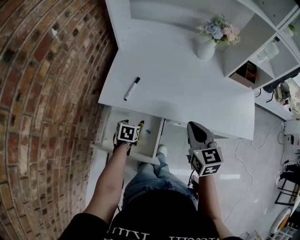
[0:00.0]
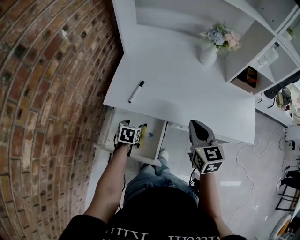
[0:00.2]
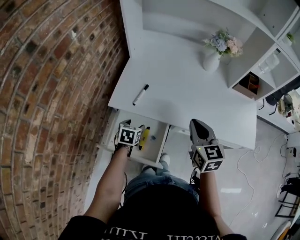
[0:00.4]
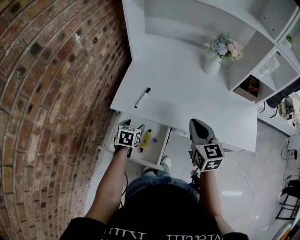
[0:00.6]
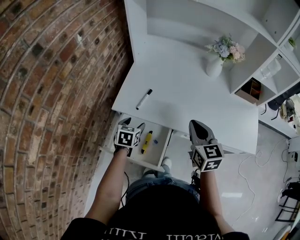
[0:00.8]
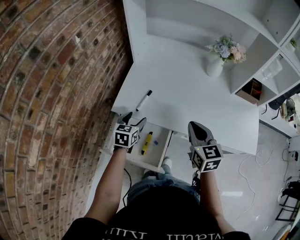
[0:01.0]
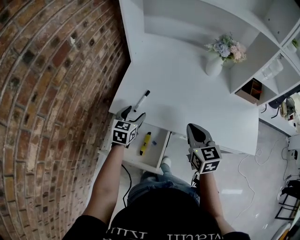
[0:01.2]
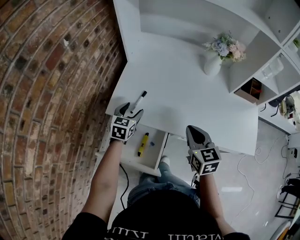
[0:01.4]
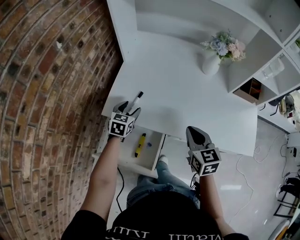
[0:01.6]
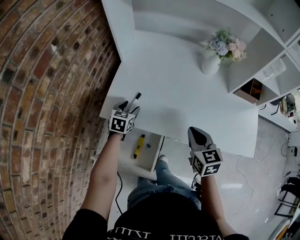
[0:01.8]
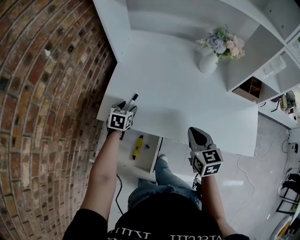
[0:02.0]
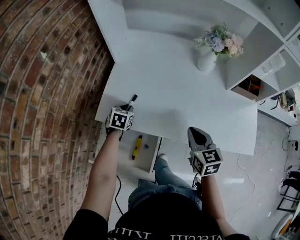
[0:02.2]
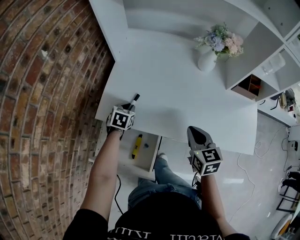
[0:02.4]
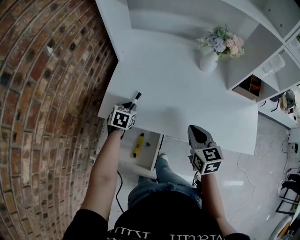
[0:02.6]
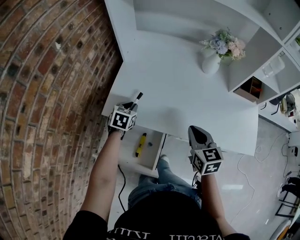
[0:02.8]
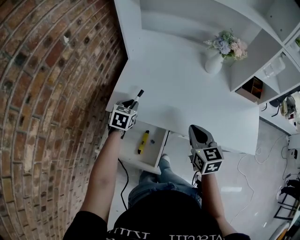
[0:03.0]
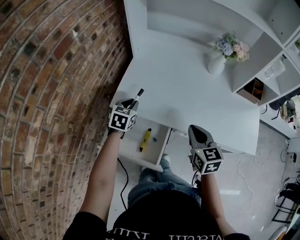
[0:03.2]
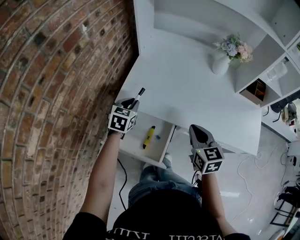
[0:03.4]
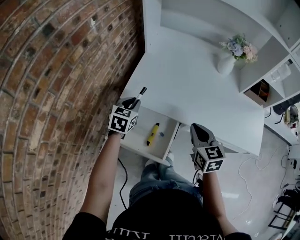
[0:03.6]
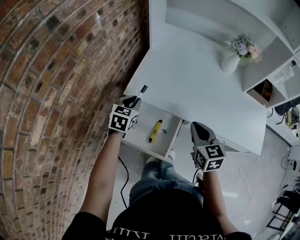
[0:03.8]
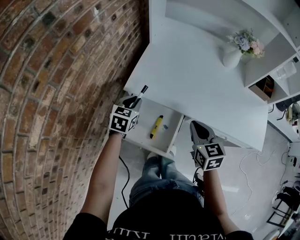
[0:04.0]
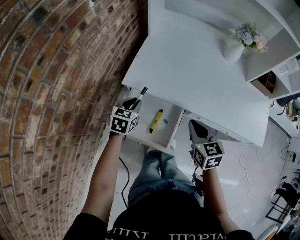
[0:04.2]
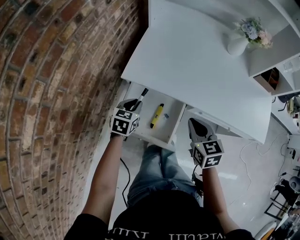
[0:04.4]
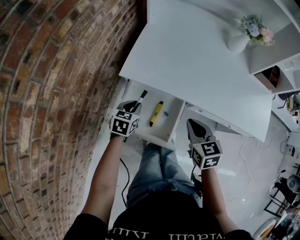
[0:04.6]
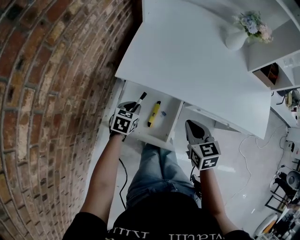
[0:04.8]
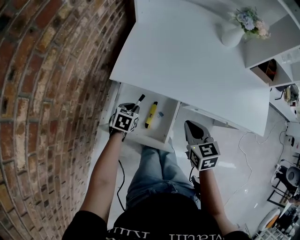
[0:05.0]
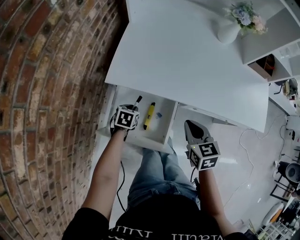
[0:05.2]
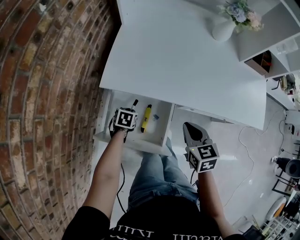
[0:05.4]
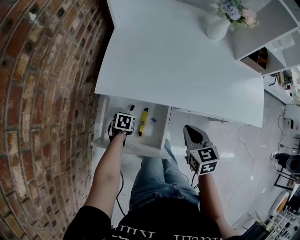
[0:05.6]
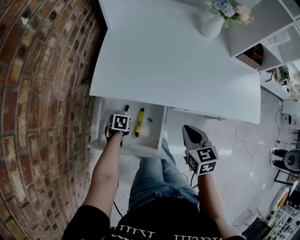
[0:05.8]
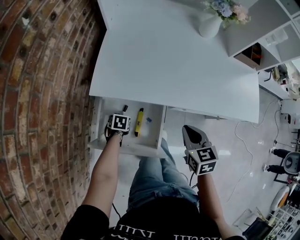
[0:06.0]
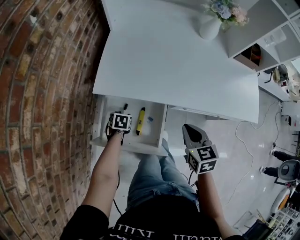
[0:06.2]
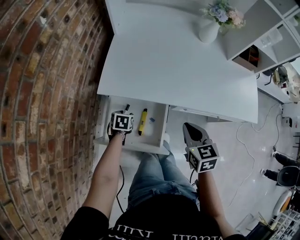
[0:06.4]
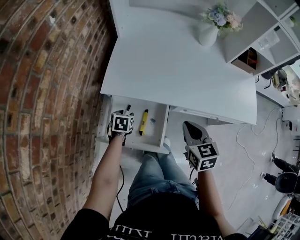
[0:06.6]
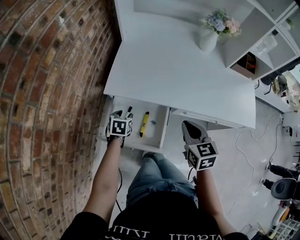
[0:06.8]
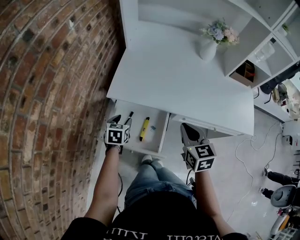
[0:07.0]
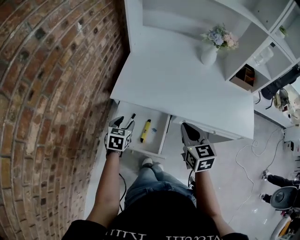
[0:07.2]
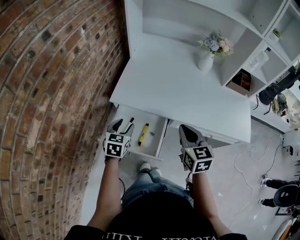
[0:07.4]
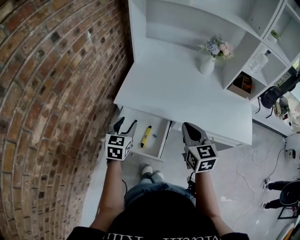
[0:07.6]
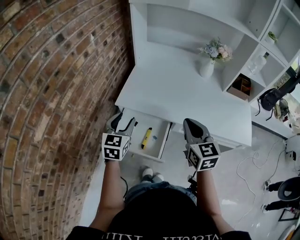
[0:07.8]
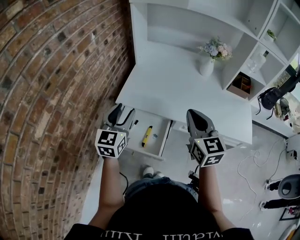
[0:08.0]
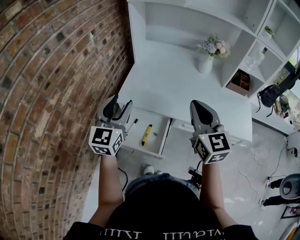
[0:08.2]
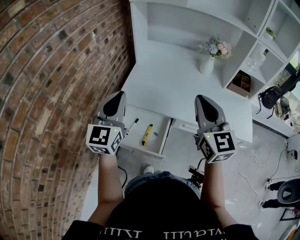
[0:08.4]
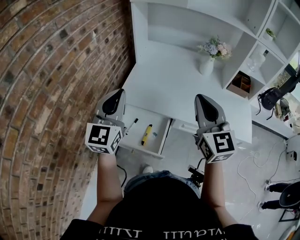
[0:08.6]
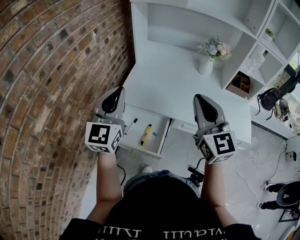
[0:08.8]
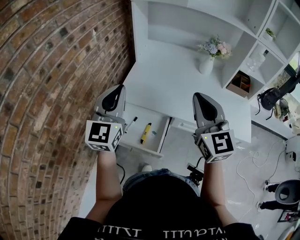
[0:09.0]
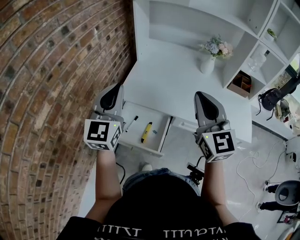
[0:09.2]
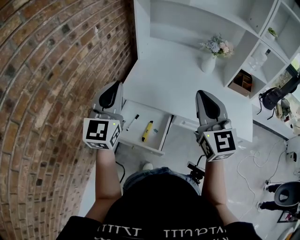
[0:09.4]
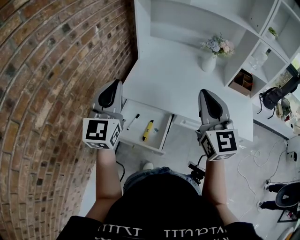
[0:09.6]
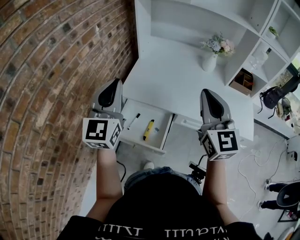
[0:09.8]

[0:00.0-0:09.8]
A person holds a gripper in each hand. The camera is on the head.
0:00.0 to 0:01.4: The right gripper ends up roughly 5 cm from where it was. Meanwhile the left gripper goes approximately 20 cm upward and forward, and rotates some 30 degrees.
0:01.4 to 0:02.8: The left gripper closes up.
0:02.8 to 0:04.2: The right gripper travels to the left and backward by roughly 15 cm. Meanwhile the left gripper shifts some 15 cm backward and to the left.
0:04.2 to 0:05.6: The left gripper goes about 25 cm downward, and angles its fingers downward, by some 30 degrees, while the right gripper shifts about 5 cm downward.
0:05.6 to 0:07.0: The right gripper goes roughly 10 cm upward; the left gripper moves upward, some 20 cm, and turns by some 30 degrees.
0:07.0 to 0:08.4: The right gripper travels upward by approximately 25 cm, and tips its fingers upward by about 30 degrees; the left gripper travels upward by approximately 35 cm, and tilts its fingers about 50 degrees upward.
0:08.4 to 0:09.8: The grippers stay close to where they were, moving slightly.

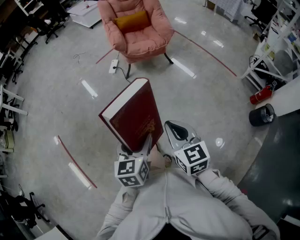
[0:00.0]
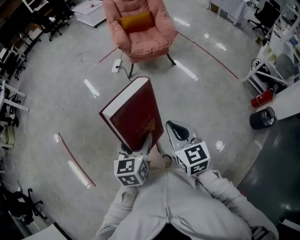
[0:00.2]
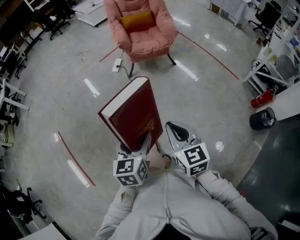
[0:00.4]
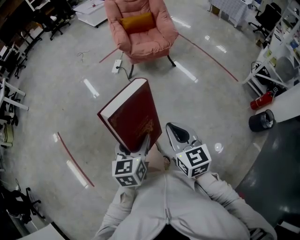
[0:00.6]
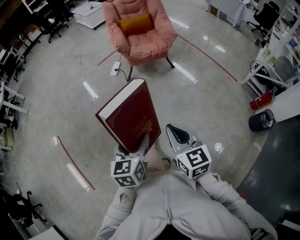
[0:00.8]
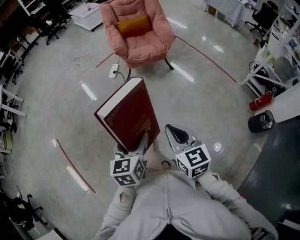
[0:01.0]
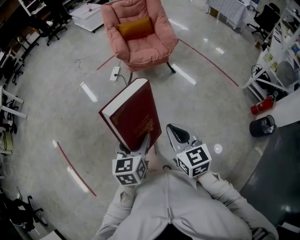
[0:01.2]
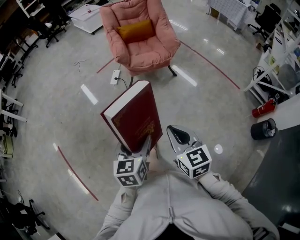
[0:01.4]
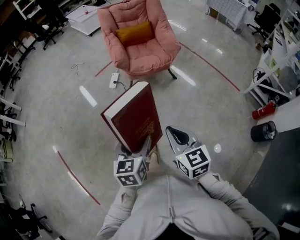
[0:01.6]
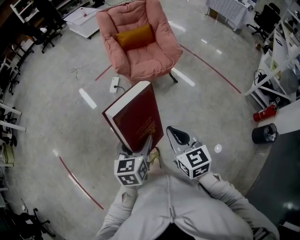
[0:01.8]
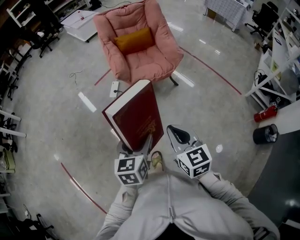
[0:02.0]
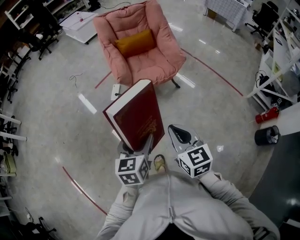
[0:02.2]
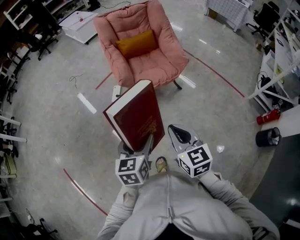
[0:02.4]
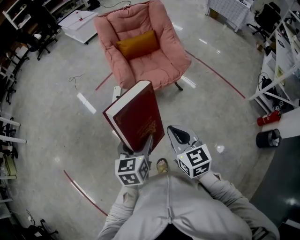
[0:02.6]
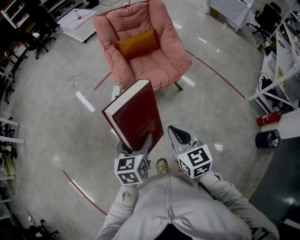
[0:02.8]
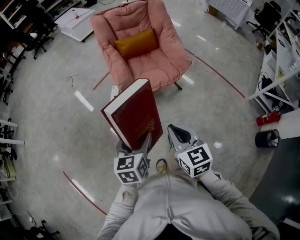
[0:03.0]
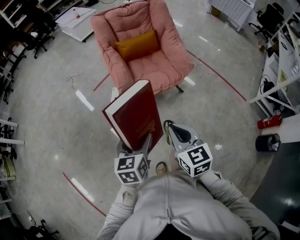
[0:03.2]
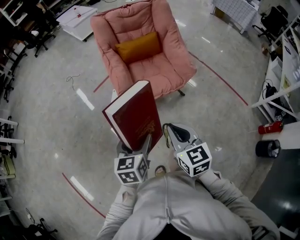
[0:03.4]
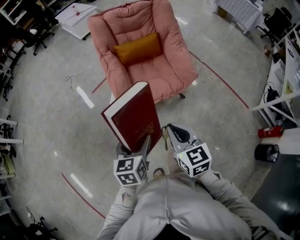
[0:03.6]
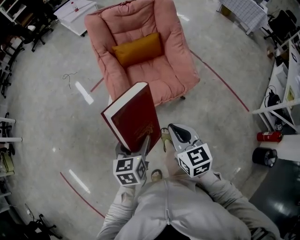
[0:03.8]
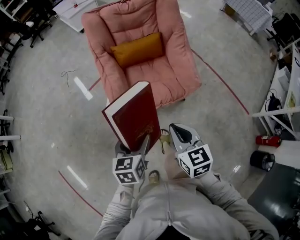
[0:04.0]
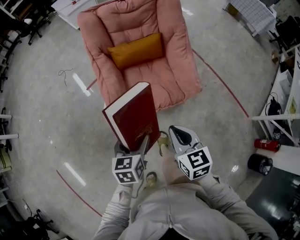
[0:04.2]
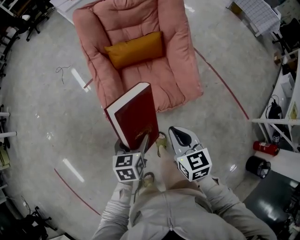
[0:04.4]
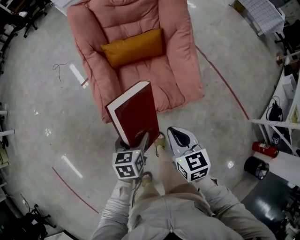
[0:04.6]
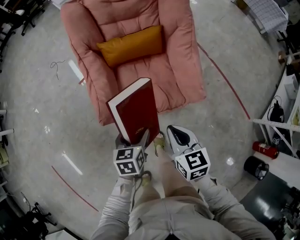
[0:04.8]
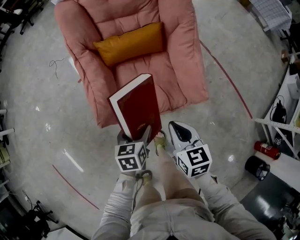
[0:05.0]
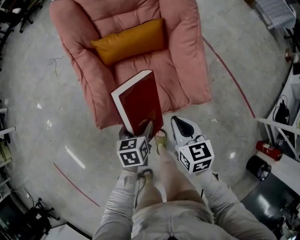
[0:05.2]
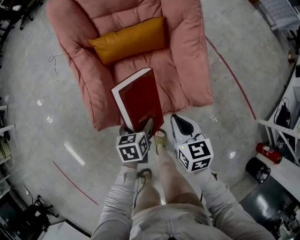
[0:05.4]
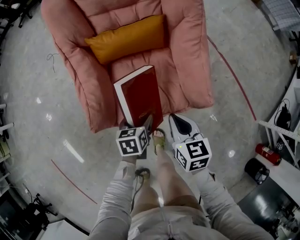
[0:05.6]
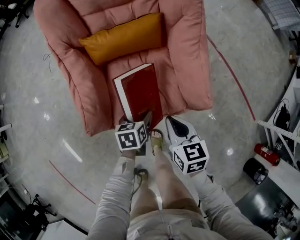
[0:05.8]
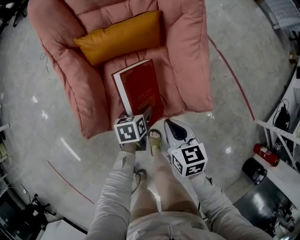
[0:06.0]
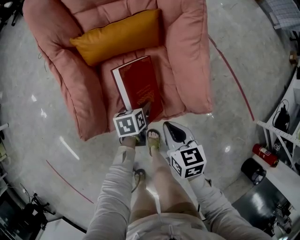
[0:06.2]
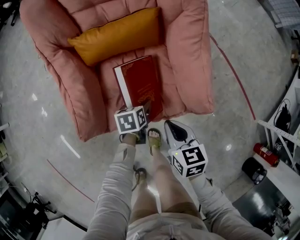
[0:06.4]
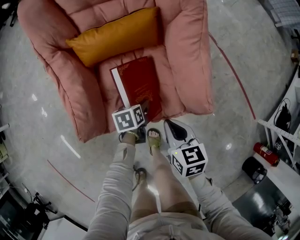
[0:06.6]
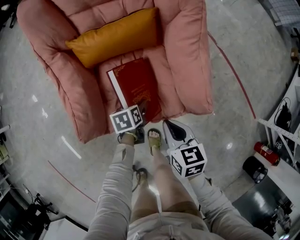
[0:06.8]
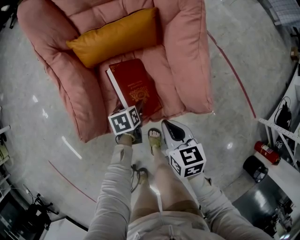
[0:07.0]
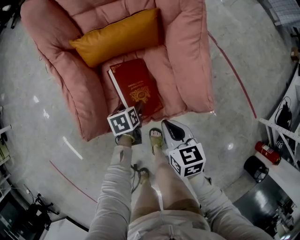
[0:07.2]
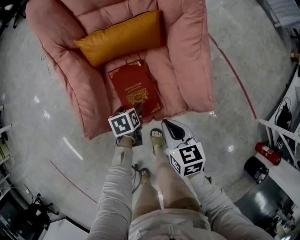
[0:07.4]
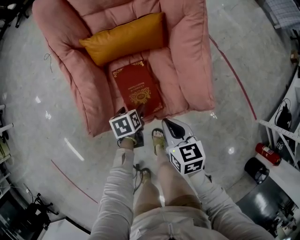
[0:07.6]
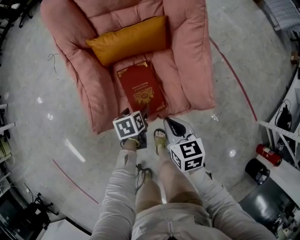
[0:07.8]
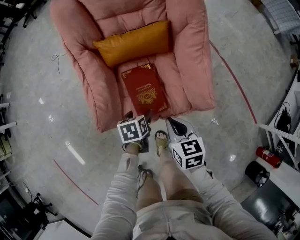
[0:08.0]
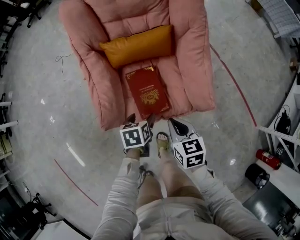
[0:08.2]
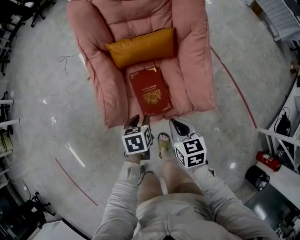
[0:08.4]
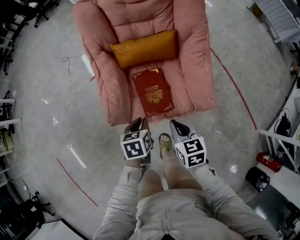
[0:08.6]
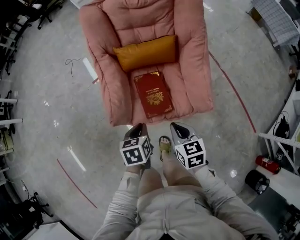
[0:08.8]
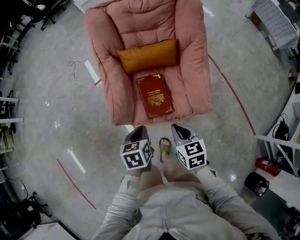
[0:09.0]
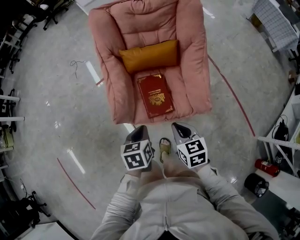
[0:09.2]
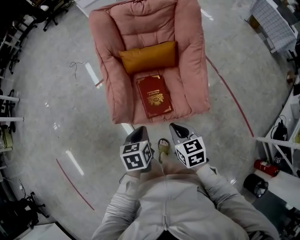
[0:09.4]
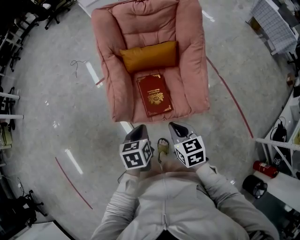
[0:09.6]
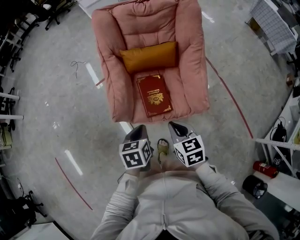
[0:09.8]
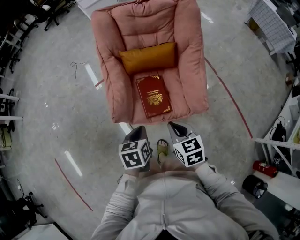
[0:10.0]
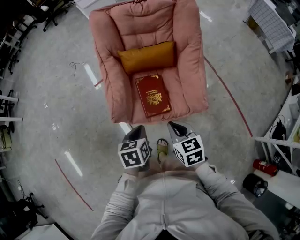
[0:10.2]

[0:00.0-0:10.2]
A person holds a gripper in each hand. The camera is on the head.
0:00.0 to 0:01.4: Both grippers move forward, roughly 15 cm.
0:01.4 to 0:03.0: The two grippers go roughly 30 cm forward.
0:03.0 to 0:04.4: The right gripper moves forward, about 30 cm; the left gripper is displaced forward and downward by approximately 30 cm.
0:04.4 to 0:05.8: The two grippers go some 25 cm downward and forward.
0:05.8 to 0:07.2: The left gripper is displaced downward by roughly 5 cm.
0:07.2 to 0:08.8: The right gripper goes approximately 10 cm upward and backward. The left gripper travels upward and backward by some 25 cm, and closes its fingers.
0:08.8 to 0:10.2: The right gripper ends up some 5 cm from where it was. The left gripper is displaced upward by roughly 5 cm.

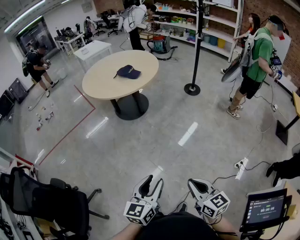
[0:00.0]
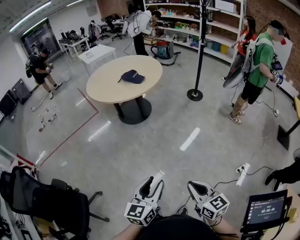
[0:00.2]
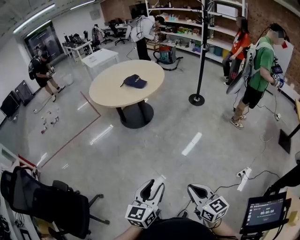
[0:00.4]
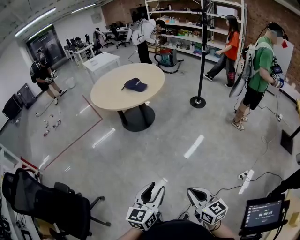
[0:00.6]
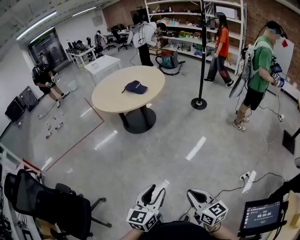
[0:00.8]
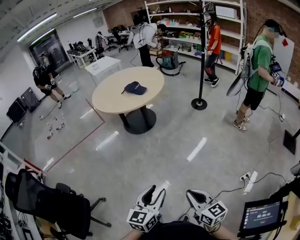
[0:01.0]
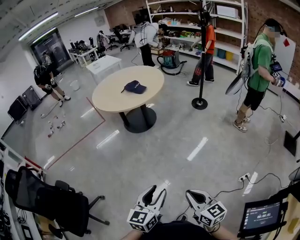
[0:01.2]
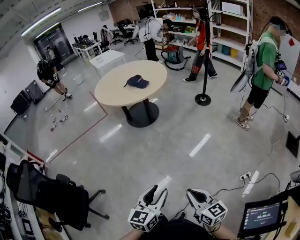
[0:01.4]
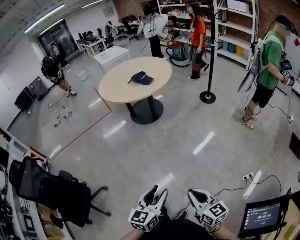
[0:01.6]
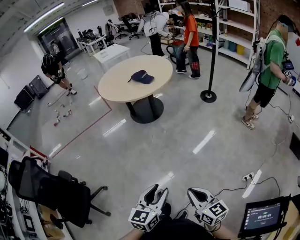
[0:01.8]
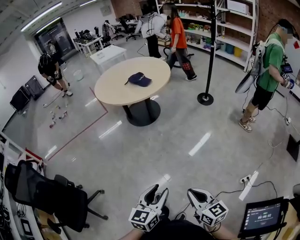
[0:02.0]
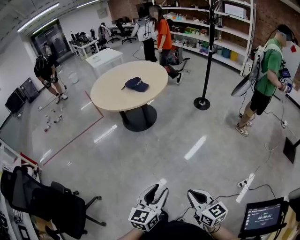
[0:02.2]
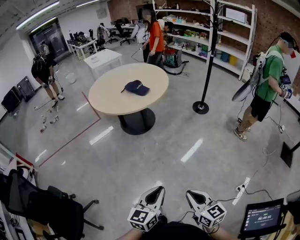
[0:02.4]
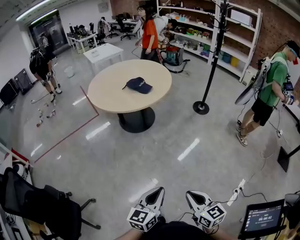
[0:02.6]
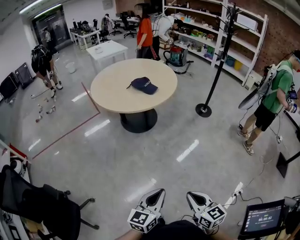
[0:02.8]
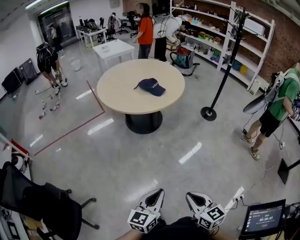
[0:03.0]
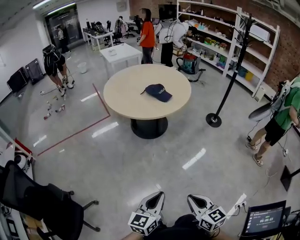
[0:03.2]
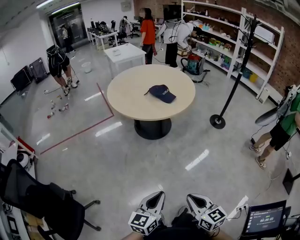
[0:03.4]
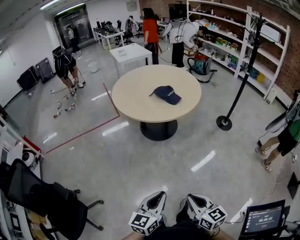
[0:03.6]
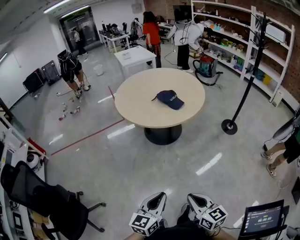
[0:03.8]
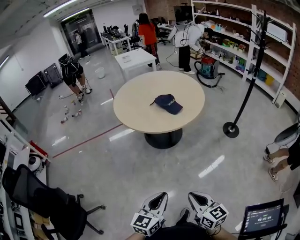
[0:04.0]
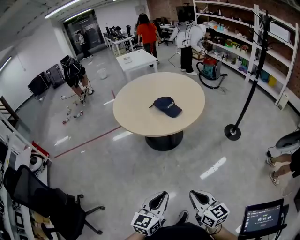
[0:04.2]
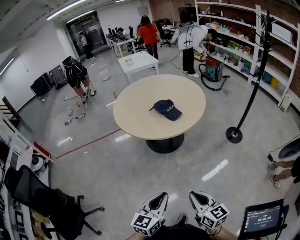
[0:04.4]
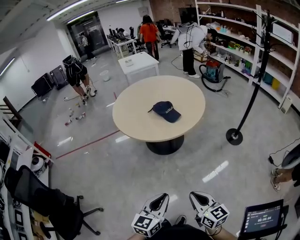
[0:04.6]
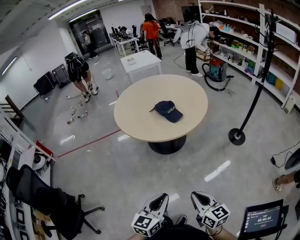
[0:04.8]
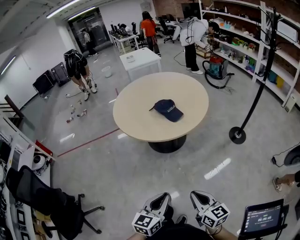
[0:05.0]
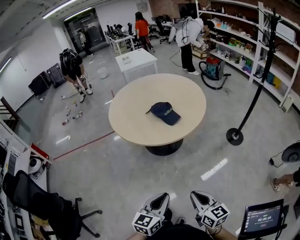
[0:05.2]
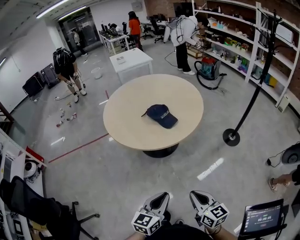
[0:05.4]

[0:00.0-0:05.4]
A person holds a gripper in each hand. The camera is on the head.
0:00.0 to 0:01.4: The right gripper goes roughly 5 cm to the right. The left gripper moves to the right and backward, roughly 10 cm.
0:01.4 to 0:02.8: Both grippers travel together forward and to the left, about 20 cm. The left gripper closes.
0:02.8 to 0:04.0: Both grippers travel together forward, about 20 cm.
0:04.0 to 0:05.4: The grippers both shift forward and to the right by some 20 cm.
